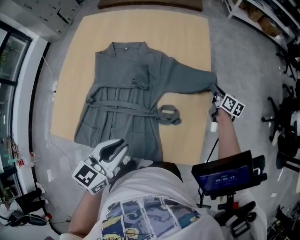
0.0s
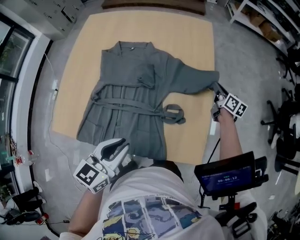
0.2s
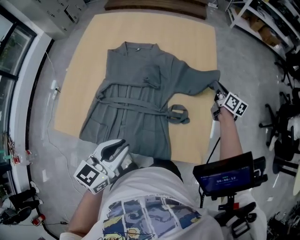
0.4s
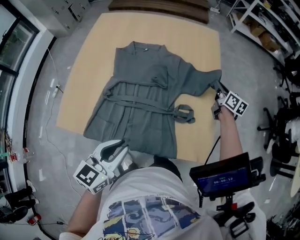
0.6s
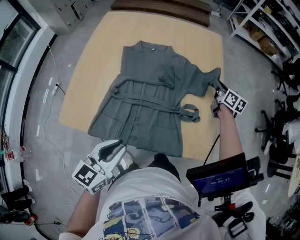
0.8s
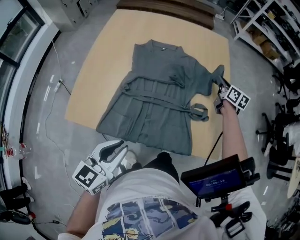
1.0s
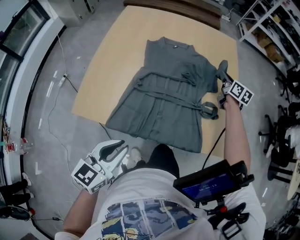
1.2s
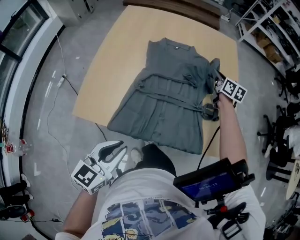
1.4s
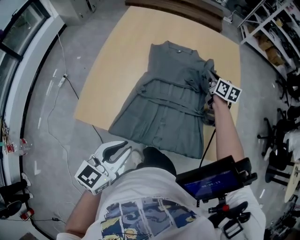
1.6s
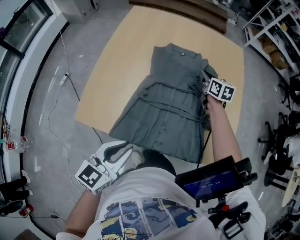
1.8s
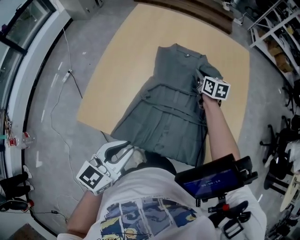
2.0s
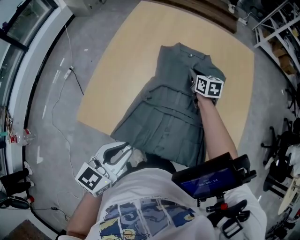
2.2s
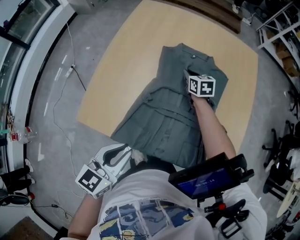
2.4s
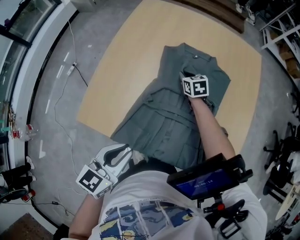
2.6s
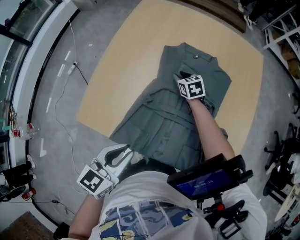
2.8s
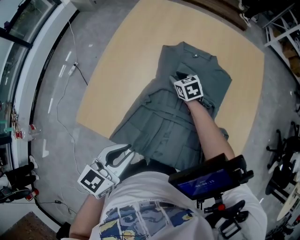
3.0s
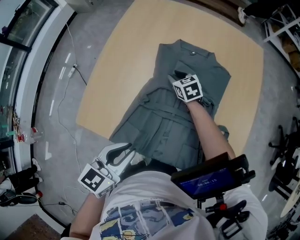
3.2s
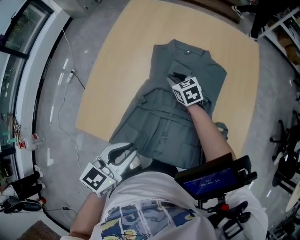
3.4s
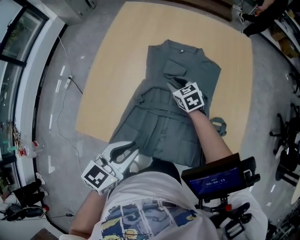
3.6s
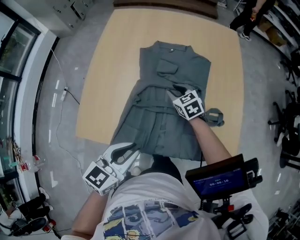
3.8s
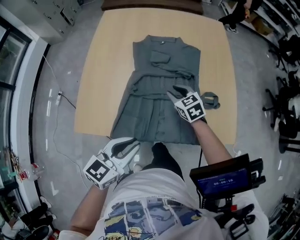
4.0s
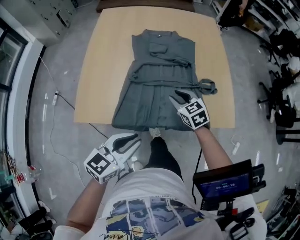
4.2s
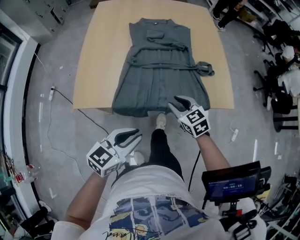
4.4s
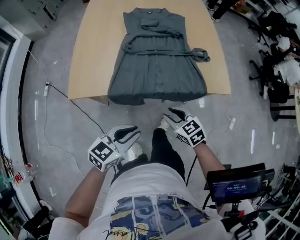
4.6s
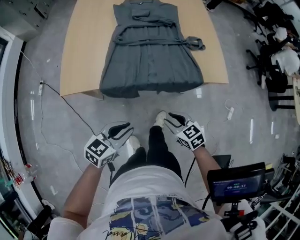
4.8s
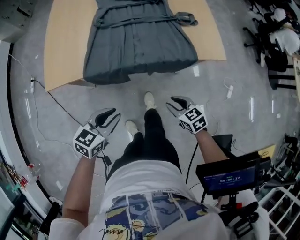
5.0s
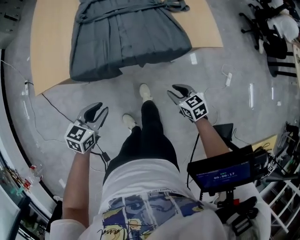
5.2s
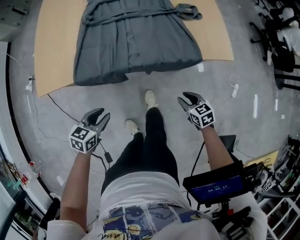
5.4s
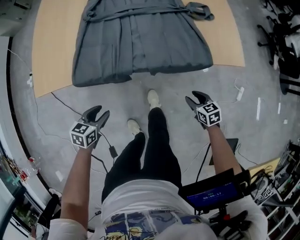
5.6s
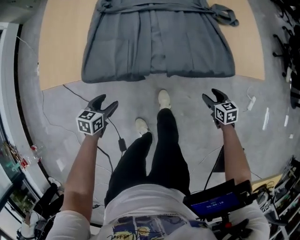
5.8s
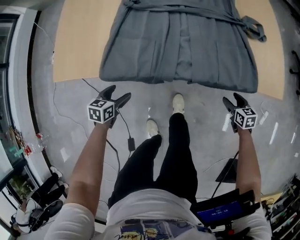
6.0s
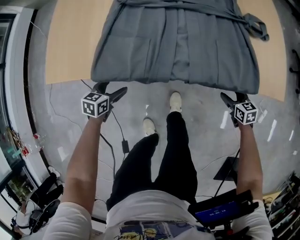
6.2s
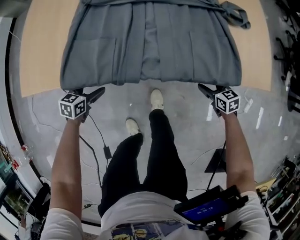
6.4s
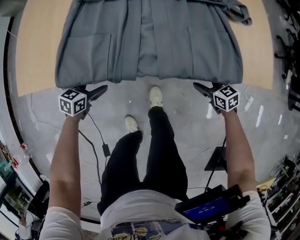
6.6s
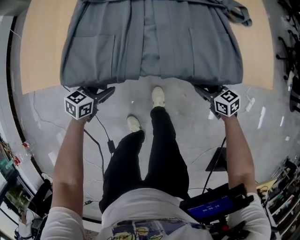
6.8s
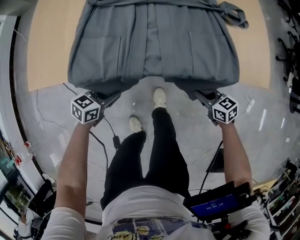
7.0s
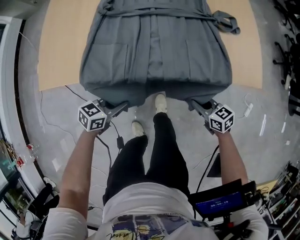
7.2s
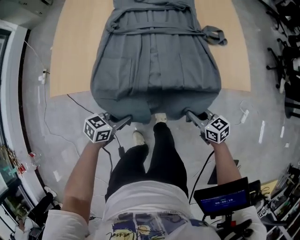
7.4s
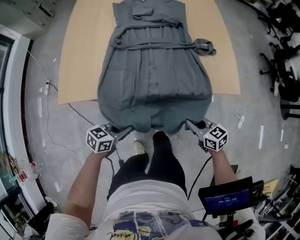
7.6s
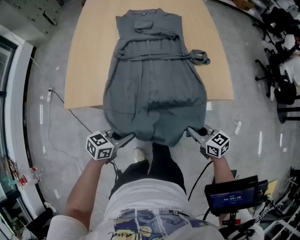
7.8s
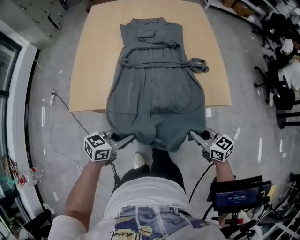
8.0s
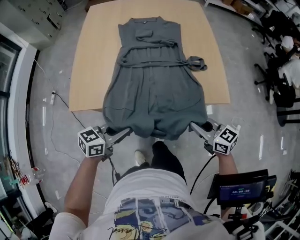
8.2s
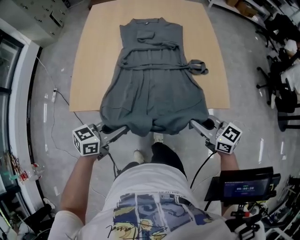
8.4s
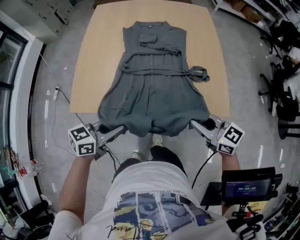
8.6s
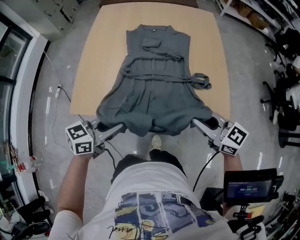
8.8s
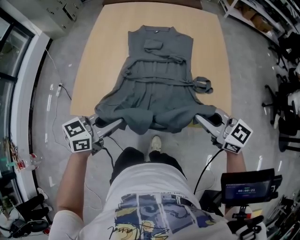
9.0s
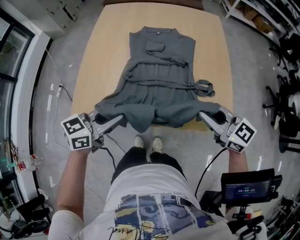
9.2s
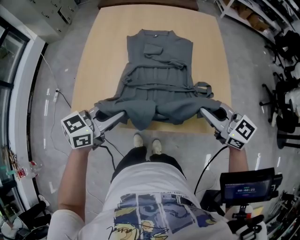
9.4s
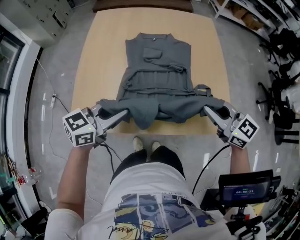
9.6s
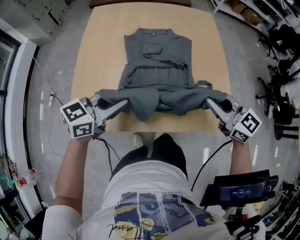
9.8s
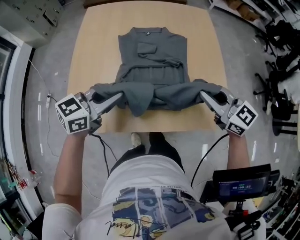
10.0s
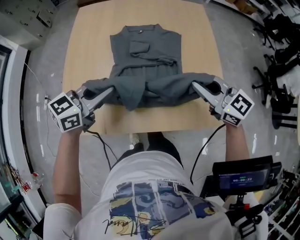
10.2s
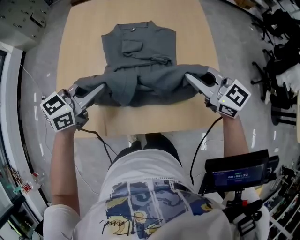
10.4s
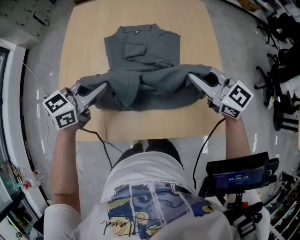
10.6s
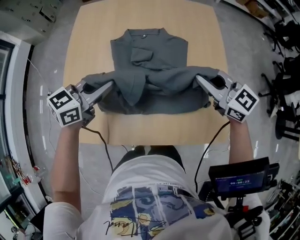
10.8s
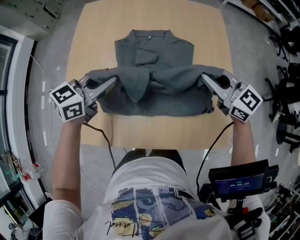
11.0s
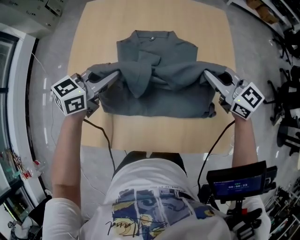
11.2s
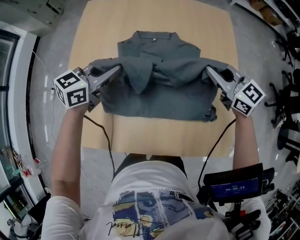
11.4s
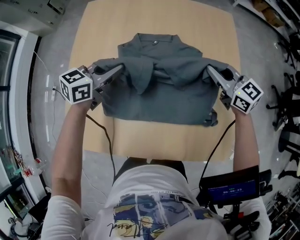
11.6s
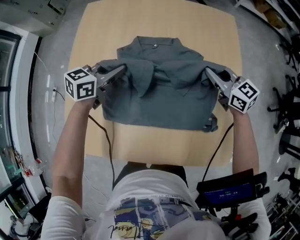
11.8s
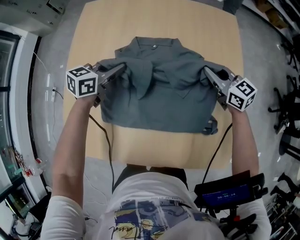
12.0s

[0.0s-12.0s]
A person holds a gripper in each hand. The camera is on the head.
0.0s to 1.6s: The left gripper heads to the left and backward, covering about 25 cm. The right gripper goes approximately 35 cm to the left.
1.6s to 3.0s: The left gripper shifts some 10 cm forward. The right gripper heads to the left and downward, covering approximately 25 cm, and changes its angle by about 40 degrees.
3.0s to 4.4s: The left gripper is displaced backward by roughly 20 cm, and turns by about 30 degrees. The right gripper is displaced backward by approximately 40 cm.
4.4s to 6.0s: The right gripper travels downward and to the right by roughly 40 cm, swivels some 30 degrees, and opens its fingers; the left gripper is displaced downward by some 35 cm, tips its fingers downward by approximately 30 degrees, and opens up.
6.0s to 7.6s: The grippers both shift upward by roughly 20 cm. The left gripper changes its angle by approximately 30 degrees, and closes its fingers. Meanwhile the right gripper changes its angle by about 20 degrees, and closes.
7.6s to 9.0s: Both grippers travel together upward and forward, about 30 cm. The right gripper turns by roughly 30 degrees.
9.0s to 10.4s: Both grippers travel together forward, some 20 cm.
10.4s to 12.0s: The two grippers go roughly 25 cm forward and downward.

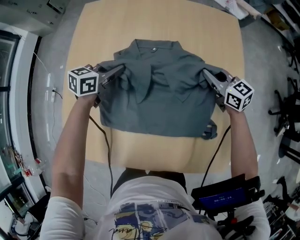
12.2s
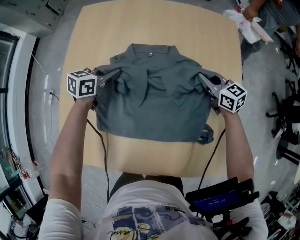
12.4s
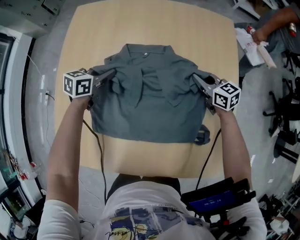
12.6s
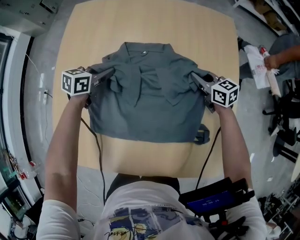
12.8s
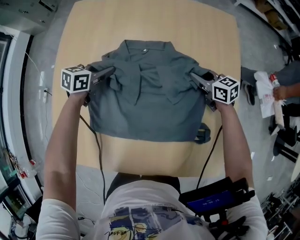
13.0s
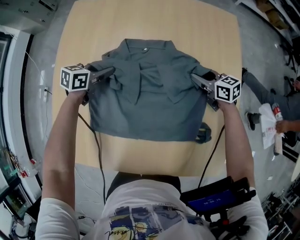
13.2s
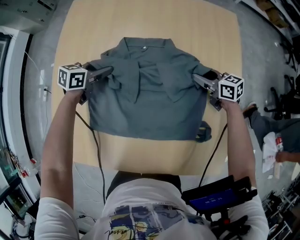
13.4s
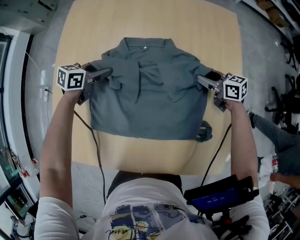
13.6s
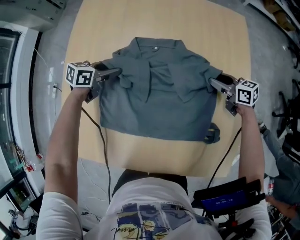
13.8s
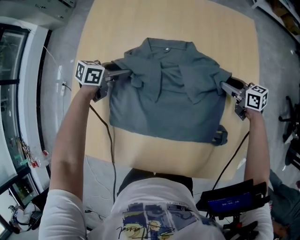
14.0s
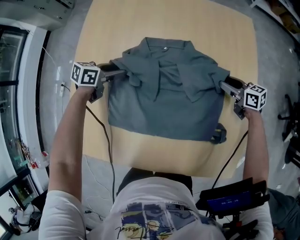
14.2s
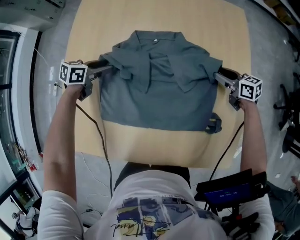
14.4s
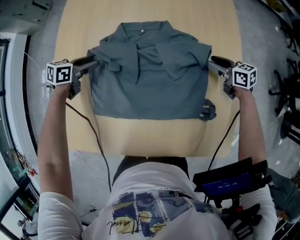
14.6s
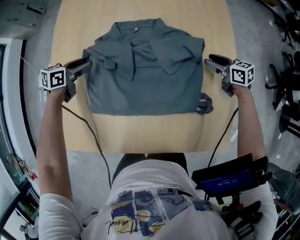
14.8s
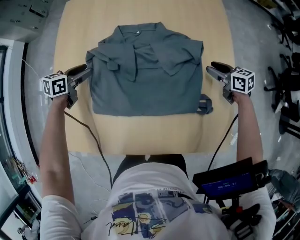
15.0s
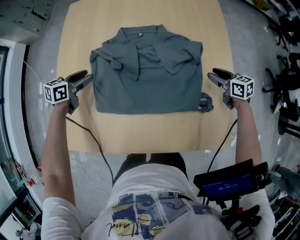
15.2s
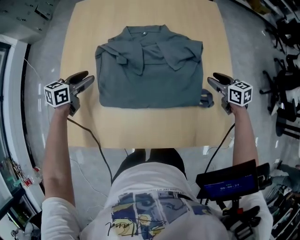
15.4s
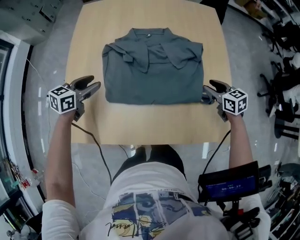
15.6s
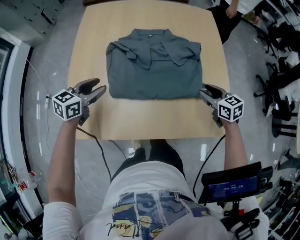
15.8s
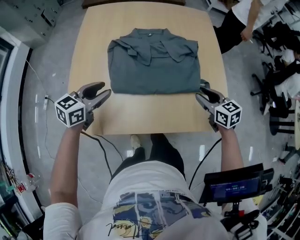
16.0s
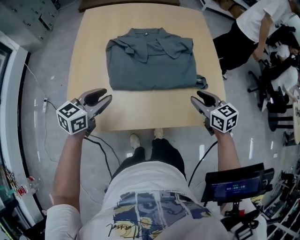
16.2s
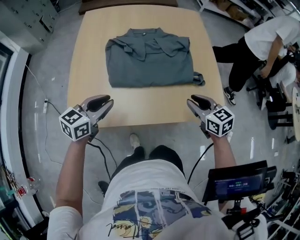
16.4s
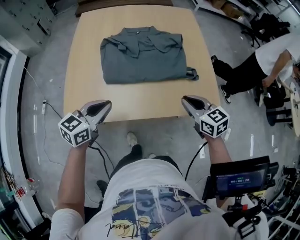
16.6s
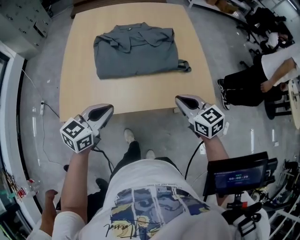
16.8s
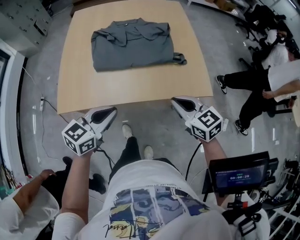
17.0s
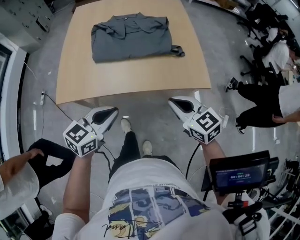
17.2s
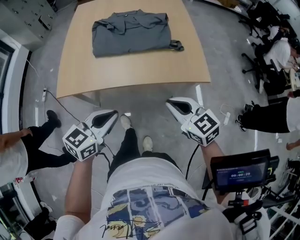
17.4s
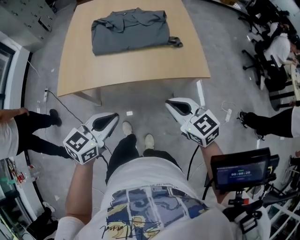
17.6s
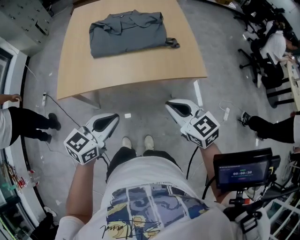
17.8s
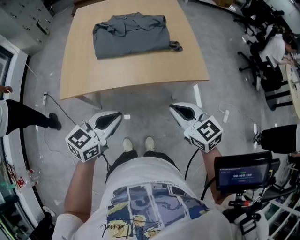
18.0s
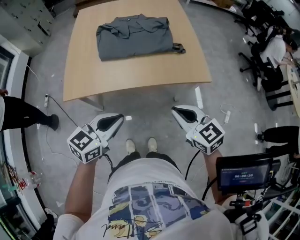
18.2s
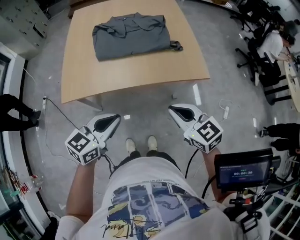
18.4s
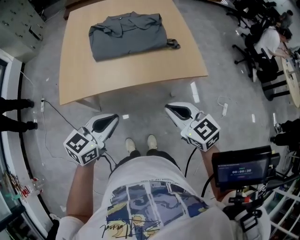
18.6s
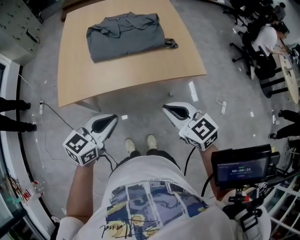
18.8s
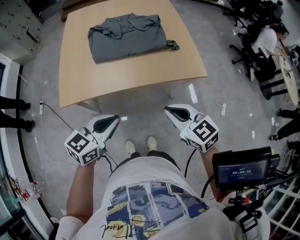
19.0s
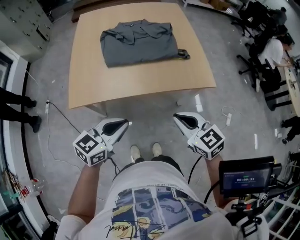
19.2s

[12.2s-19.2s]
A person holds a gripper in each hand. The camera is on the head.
12.2s to 13.6s: Both grippers travel together downward, some 5 cm. The right gripper swivels approximately 20 degrees, and opens up. The left gripper opens up.
13.6s to 15.0s: The left gripper ends up about 10 cm from where it was. The right gripper changes place by about 10 cm.
15.0s to 16.4s: The two grippers go roughly 35 cm backward and upward. The left gripper rotates approximately 20 degrees, and closes. The right gripper rotates some 20 degrees.
16.4s to 17.8s: The right gripper goes approximately 25 cm backward, and closes; the left gripper goes about 30 cm backward and to the right.
17.8s to 19.2s: Both grippers travel together to the left, about 5 cm.

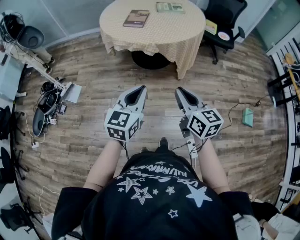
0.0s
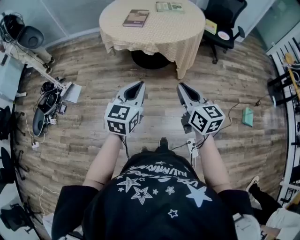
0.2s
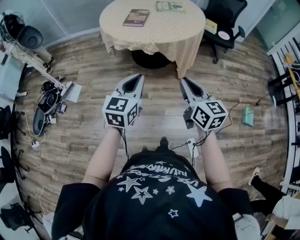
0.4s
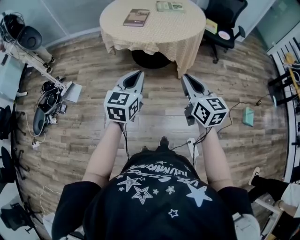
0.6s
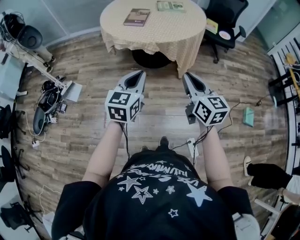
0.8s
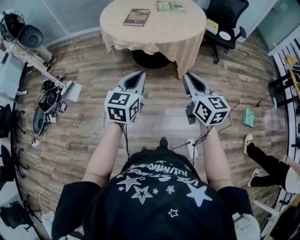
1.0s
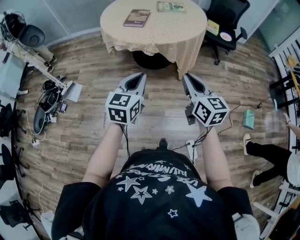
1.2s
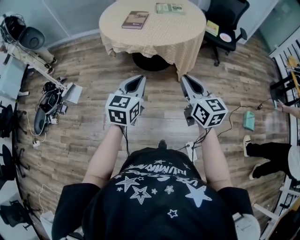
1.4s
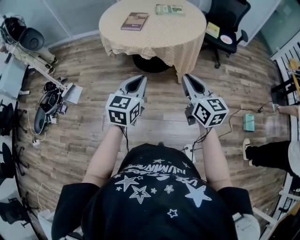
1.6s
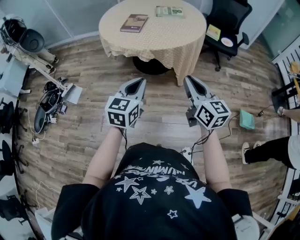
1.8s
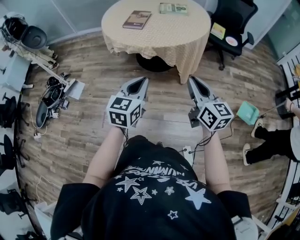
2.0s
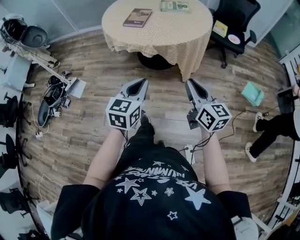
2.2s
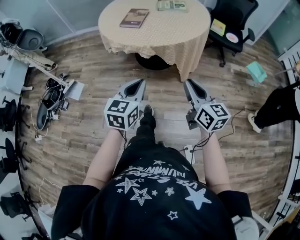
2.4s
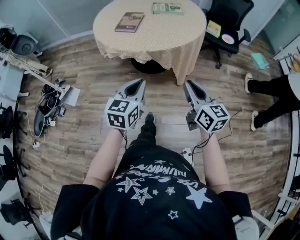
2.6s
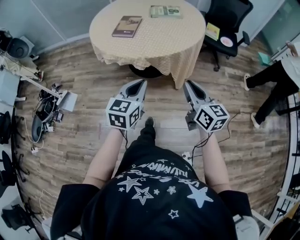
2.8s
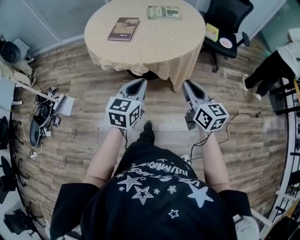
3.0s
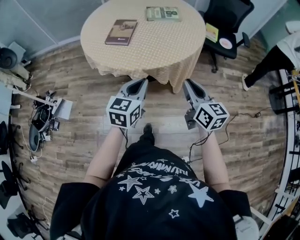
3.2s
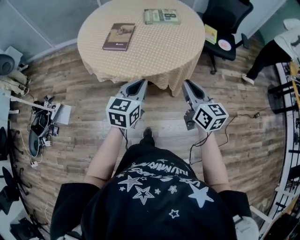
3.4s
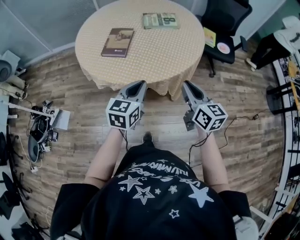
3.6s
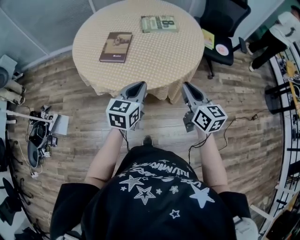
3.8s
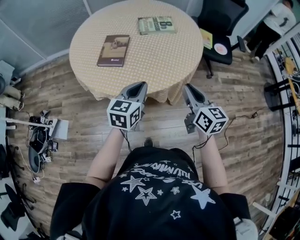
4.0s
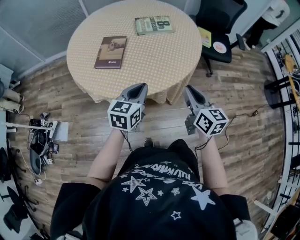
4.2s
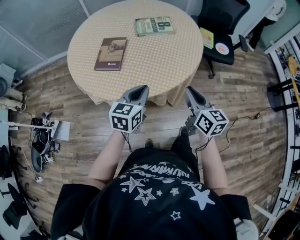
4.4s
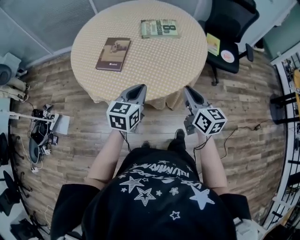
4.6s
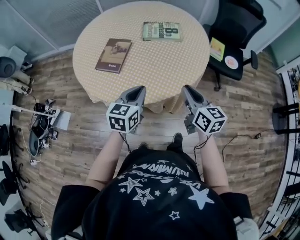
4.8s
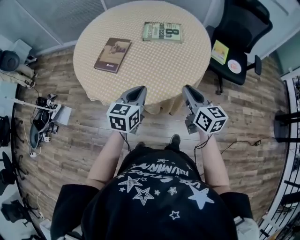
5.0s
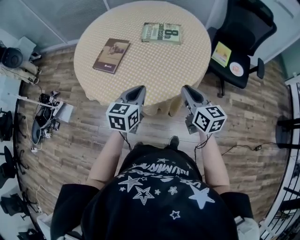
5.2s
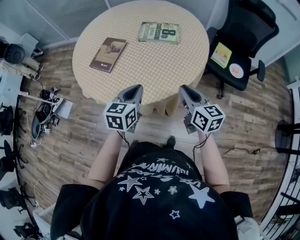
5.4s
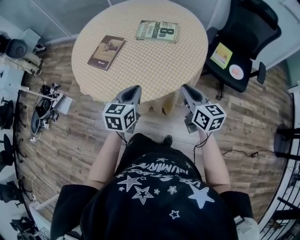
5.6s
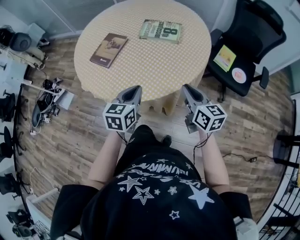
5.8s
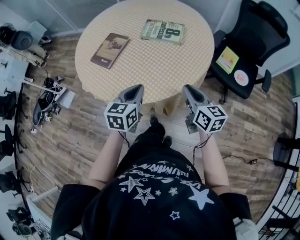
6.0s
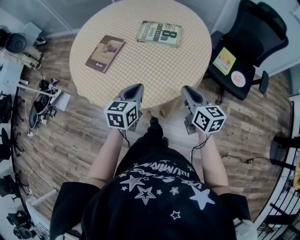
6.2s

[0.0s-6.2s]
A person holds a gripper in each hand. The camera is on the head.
0.0s to 1.6s: The right gripper shifts about 10 cm to the right and forward. The left gripper shifts about 5 cm forward.
1.6s to 3.2s: The two grippers go approximately 20 cm forward.
3.2s to 4.6s: Both grippers move forward, about 15 cm.
4.6s to 6.2s: The two grippers go some 15 cm to the right and forward. The left gripper turns by about 20 degrees.
